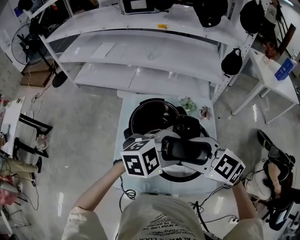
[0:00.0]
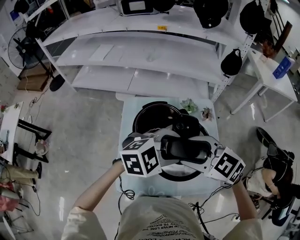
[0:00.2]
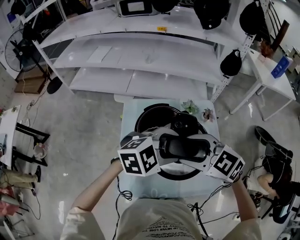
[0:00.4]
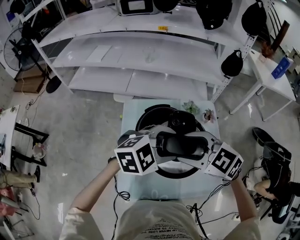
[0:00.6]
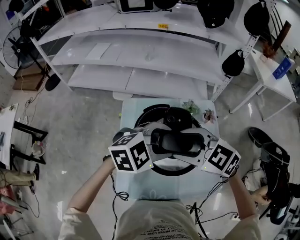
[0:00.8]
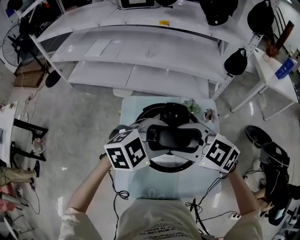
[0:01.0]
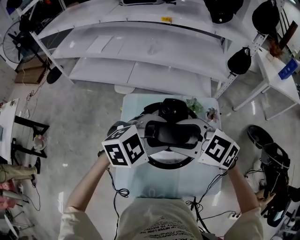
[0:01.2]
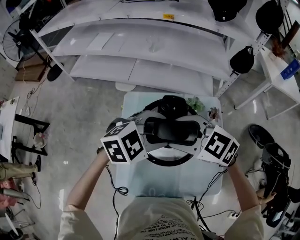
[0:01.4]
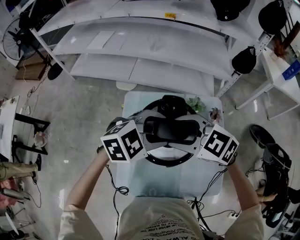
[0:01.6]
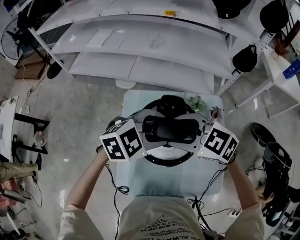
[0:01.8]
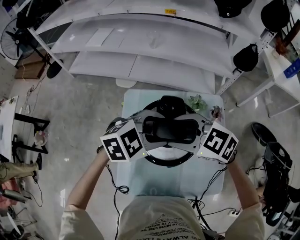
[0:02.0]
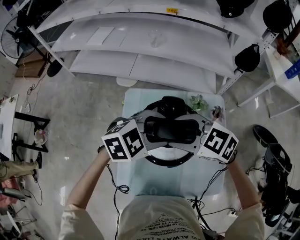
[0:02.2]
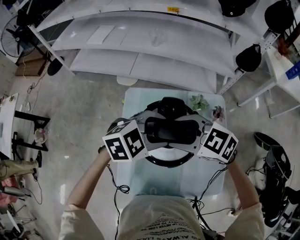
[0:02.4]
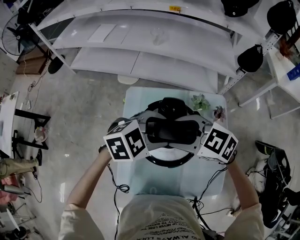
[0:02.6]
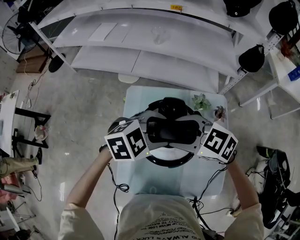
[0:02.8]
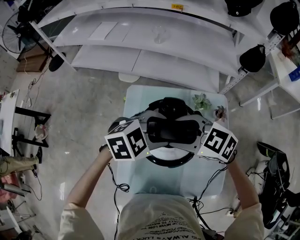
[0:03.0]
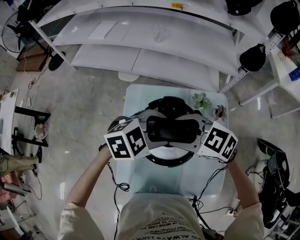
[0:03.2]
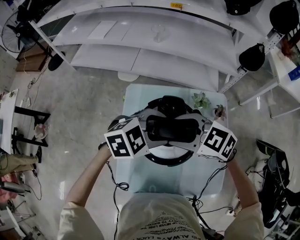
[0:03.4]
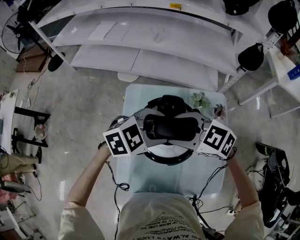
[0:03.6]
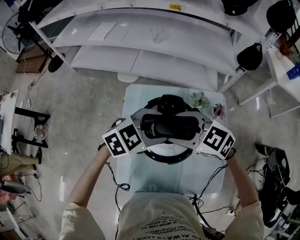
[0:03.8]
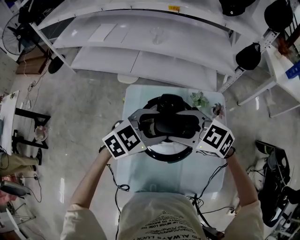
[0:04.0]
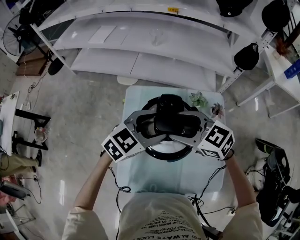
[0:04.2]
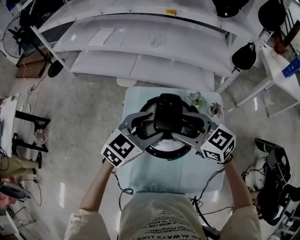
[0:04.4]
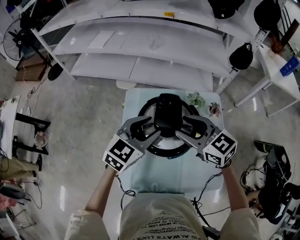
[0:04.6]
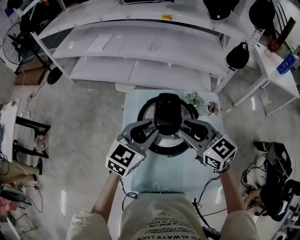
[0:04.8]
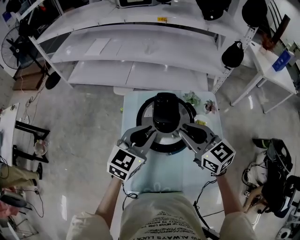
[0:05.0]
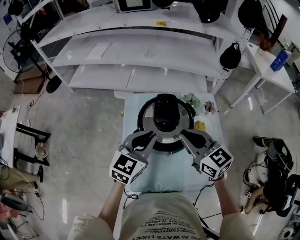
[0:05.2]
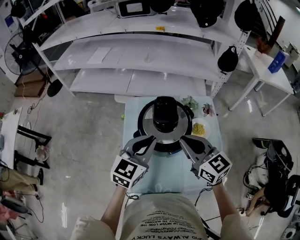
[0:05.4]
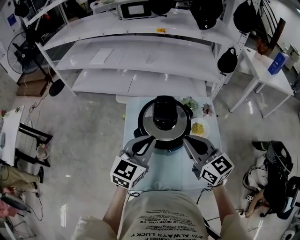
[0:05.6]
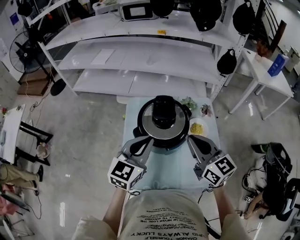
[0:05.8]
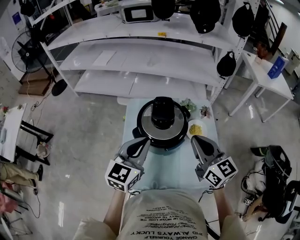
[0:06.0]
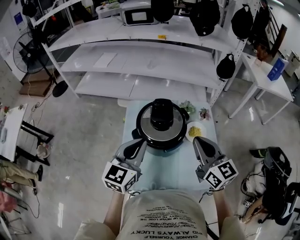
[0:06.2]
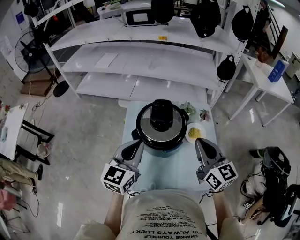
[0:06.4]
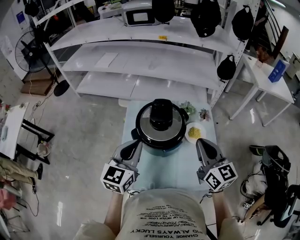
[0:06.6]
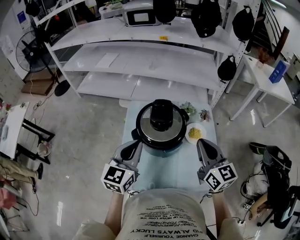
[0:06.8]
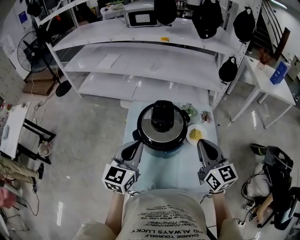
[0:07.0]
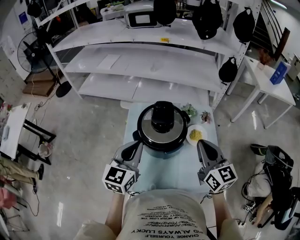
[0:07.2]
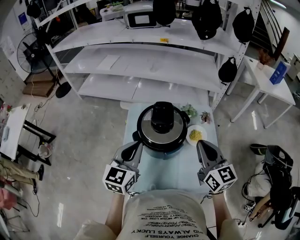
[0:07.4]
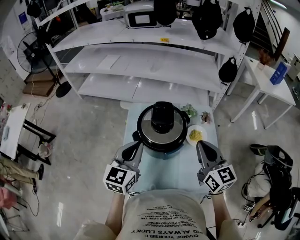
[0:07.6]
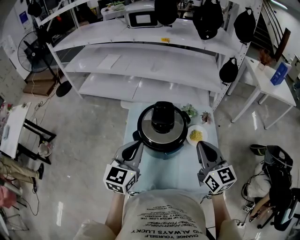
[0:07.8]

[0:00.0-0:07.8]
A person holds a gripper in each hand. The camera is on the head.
0:00.0 to 0:01.6: The left gripper ends up roughly 15 cm from where it was. The right gripper changes place by approximately 15 cm.
0:01.6 to 0:03.2: The grippers move only a little.
0:03.2 to 0:04.6: The left gripper turns by some 40 degrees, while the right gripper changes its angle by about 30 degrees.
0:04.6 to 0:06.2: The left gripper heads backward and upward, covering roughly 10 cm, rotates approximately 20 degrees, and closes its fingers. The right gripper shifts about 15 cm backward and to the right, turns by roughly 30 degrees, and closes its fingers.
0:06.2 to 0:07.8: The grippers move only a little.

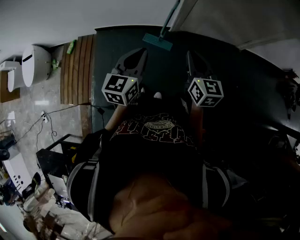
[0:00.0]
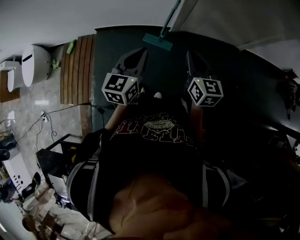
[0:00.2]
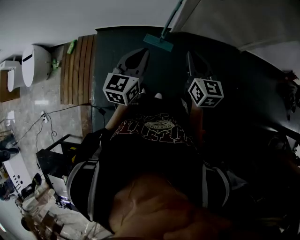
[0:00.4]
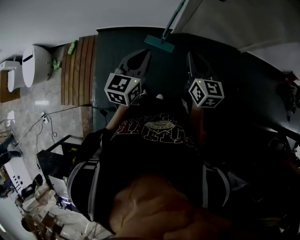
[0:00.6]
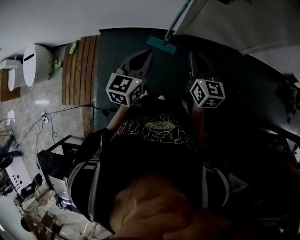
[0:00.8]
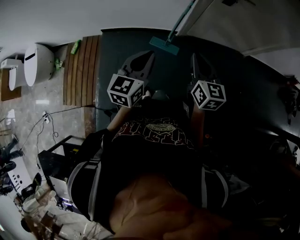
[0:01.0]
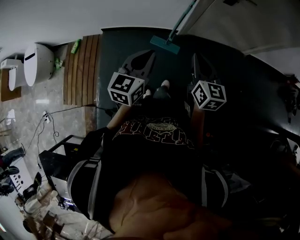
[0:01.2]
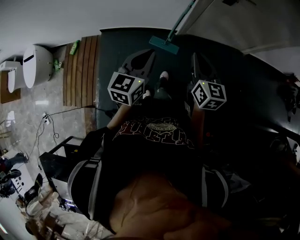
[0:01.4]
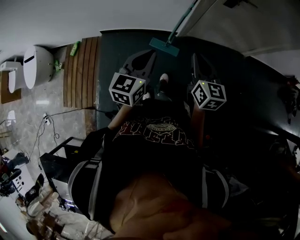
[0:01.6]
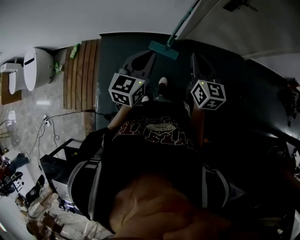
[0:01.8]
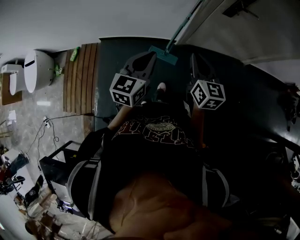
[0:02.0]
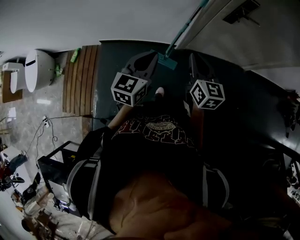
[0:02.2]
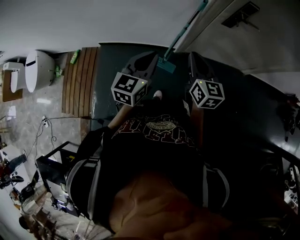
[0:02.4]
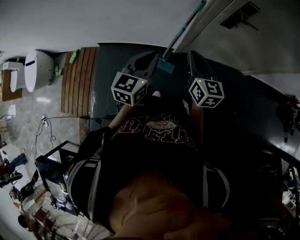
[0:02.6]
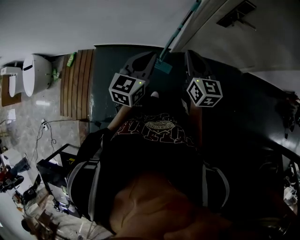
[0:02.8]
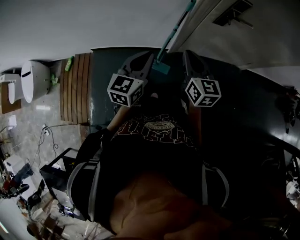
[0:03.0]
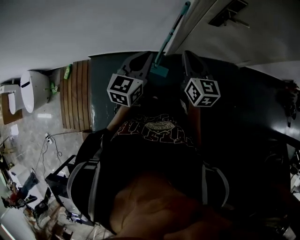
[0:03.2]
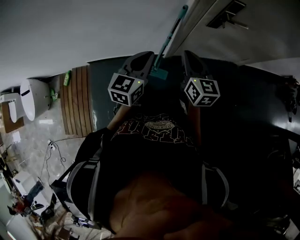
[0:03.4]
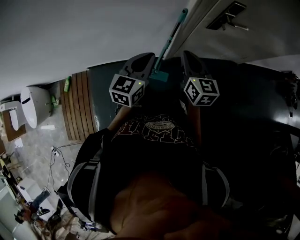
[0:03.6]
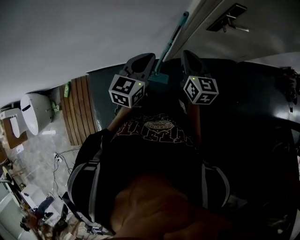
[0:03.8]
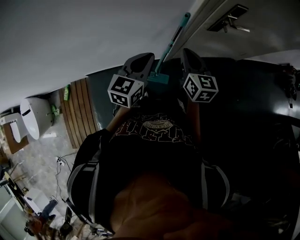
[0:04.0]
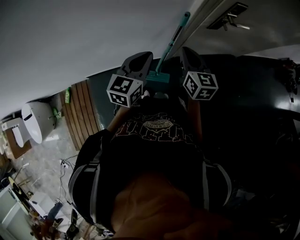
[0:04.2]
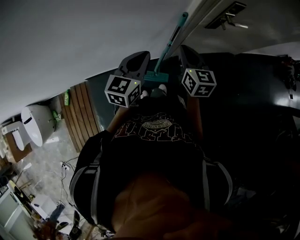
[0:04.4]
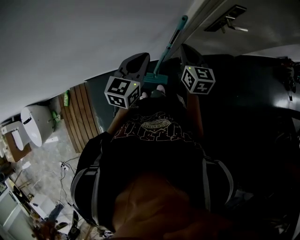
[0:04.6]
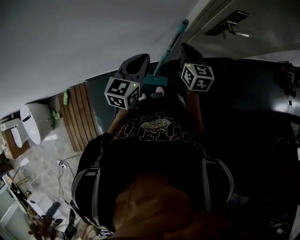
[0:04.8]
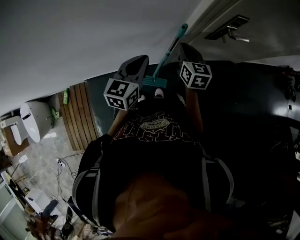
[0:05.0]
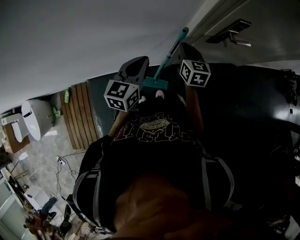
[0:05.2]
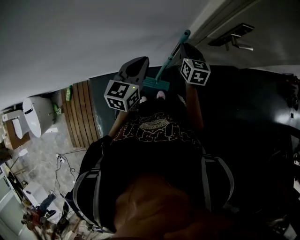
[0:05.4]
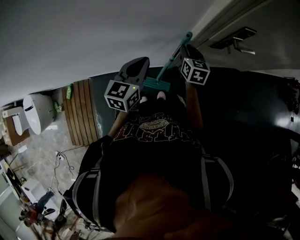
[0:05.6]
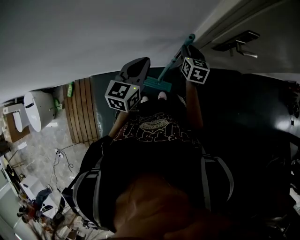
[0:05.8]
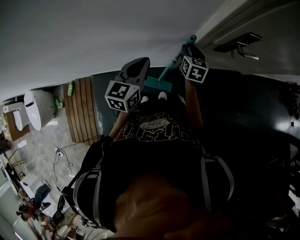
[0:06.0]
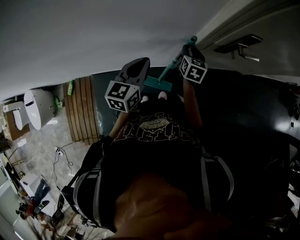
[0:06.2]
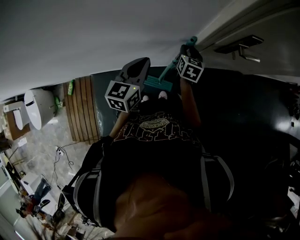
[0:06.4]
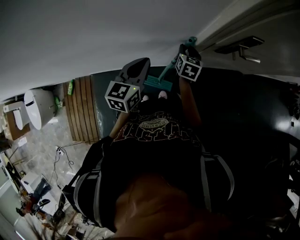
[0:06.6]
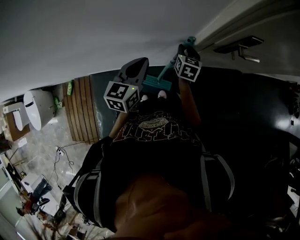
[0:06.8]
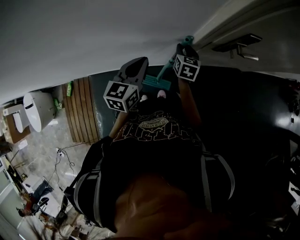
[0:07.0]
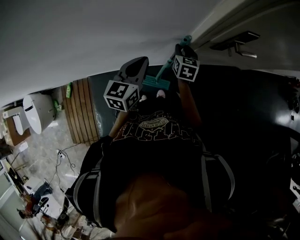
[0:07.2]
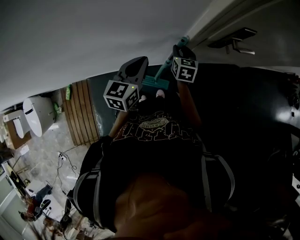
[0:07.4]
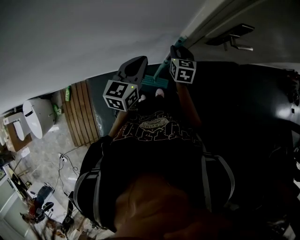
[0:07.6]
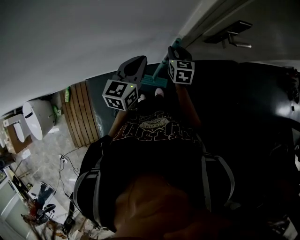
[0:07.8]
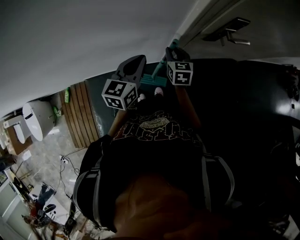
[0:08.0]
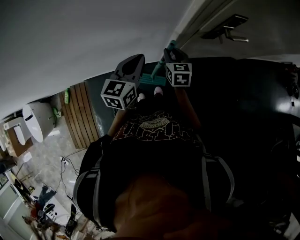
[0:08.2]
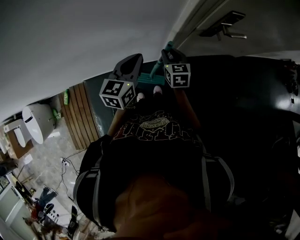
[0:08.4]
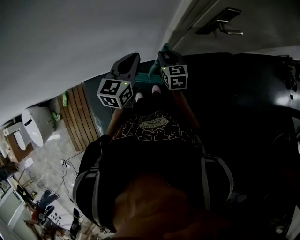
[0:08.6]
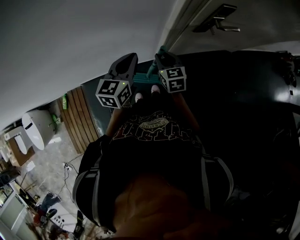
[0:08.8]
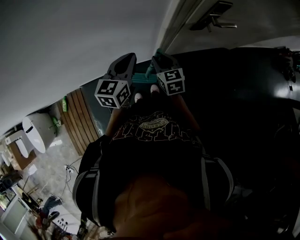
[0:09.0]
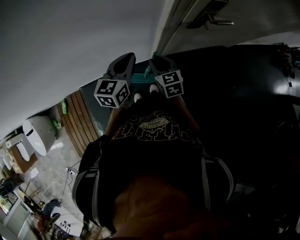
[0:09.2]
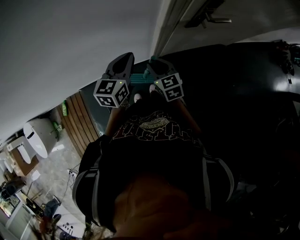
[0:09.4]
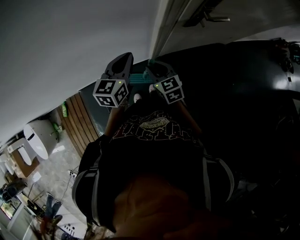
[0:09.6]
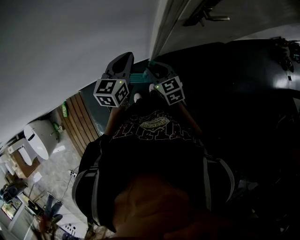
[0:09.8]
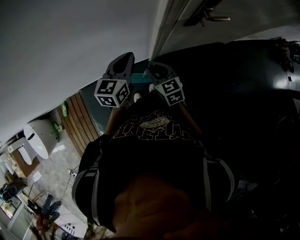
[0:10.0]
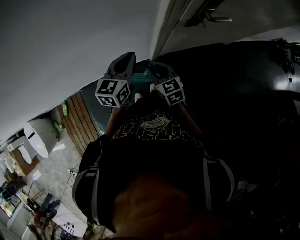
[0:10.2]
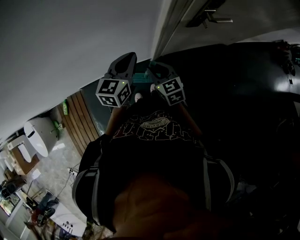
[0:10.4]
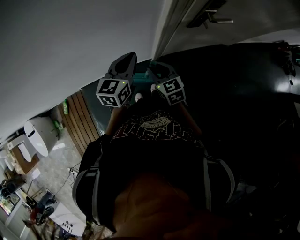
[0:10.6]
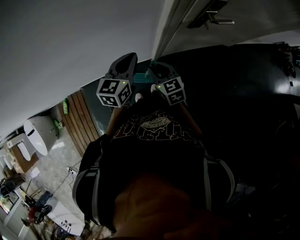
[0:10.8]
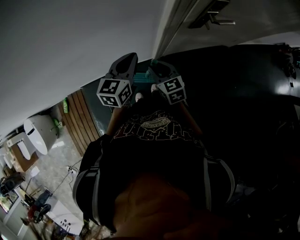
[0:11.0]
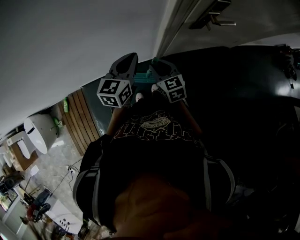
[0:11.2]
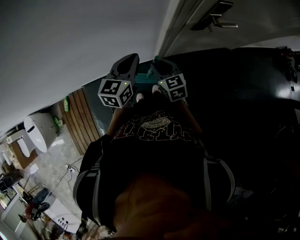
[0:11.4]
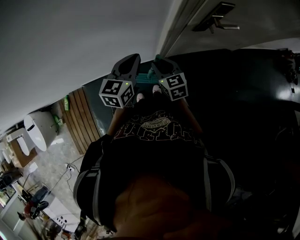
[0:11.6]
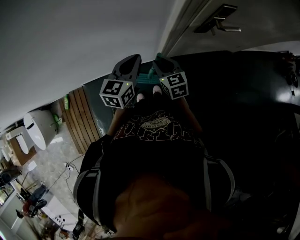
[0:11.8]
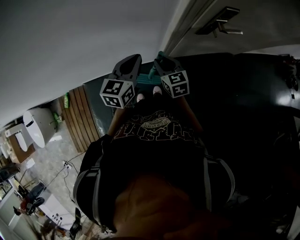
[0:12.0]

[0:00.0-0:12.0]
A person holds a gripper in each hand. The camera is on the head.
0:00.0 to 0:01.6: Both grippers travel together forward and to the left, about 10 cm.
0:01.6 to 0:03.0: Both grippers travel together forward, approximately 25 cm.
0:03.0 to 0:04.4: The left gripper travels forward and to the left by about 15 cm. Meanwhile the right gripper shifts approximately 15 cm forward.
0:04.4 to 0:06.0: The right gripper heads forward and downward, covering some 20 cm, and opens up, while the left gripper is displaced forward by some 10 cm.
0:06.0 to 0:07.6: The grippers make only small movements.
0:07.6 to 0:09.0: The right gripper is displaced backward by about 10 cm.
0:09.0 to 0:10.4: The right gripper moves backward, roughly 5 cm.
0:10.4 to 0:12.0: The right gripper heads forward, covering some 5 cm.

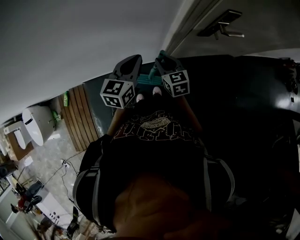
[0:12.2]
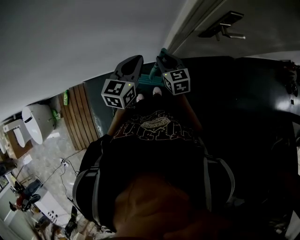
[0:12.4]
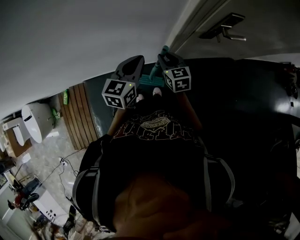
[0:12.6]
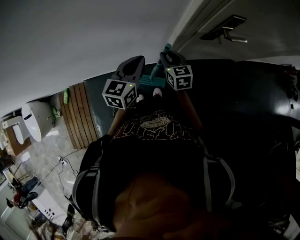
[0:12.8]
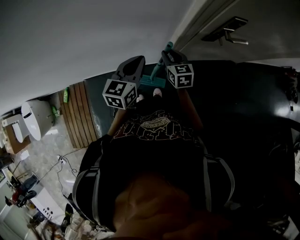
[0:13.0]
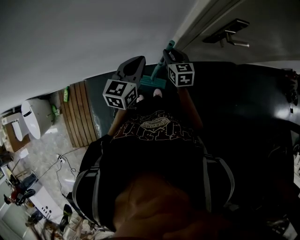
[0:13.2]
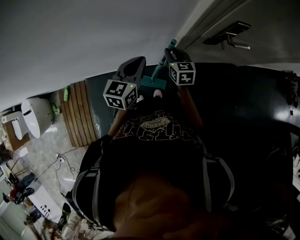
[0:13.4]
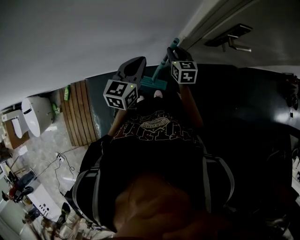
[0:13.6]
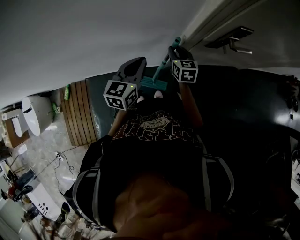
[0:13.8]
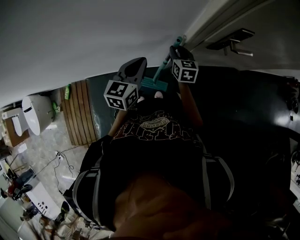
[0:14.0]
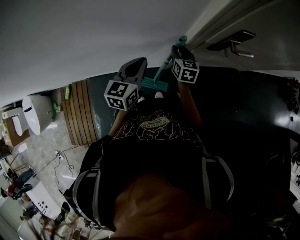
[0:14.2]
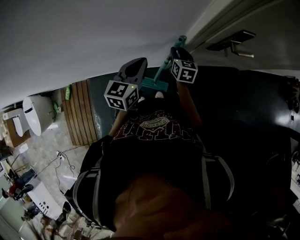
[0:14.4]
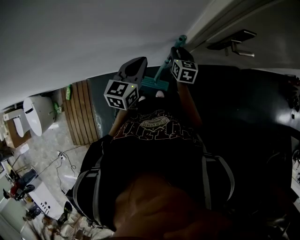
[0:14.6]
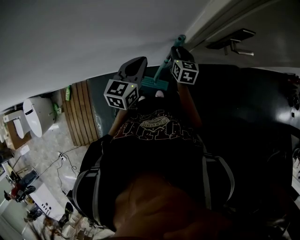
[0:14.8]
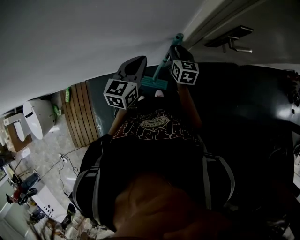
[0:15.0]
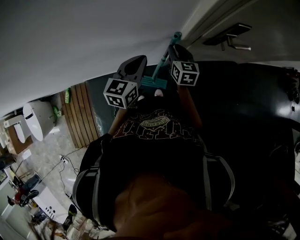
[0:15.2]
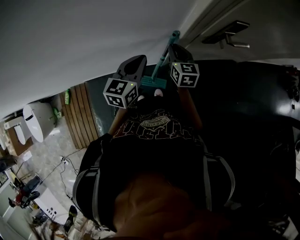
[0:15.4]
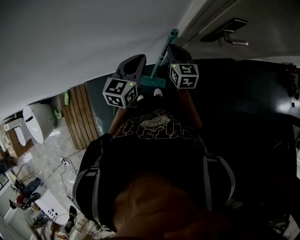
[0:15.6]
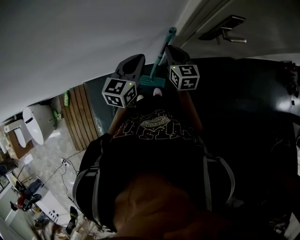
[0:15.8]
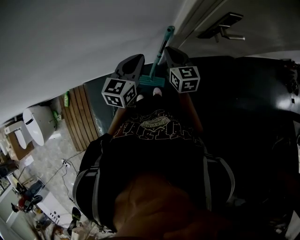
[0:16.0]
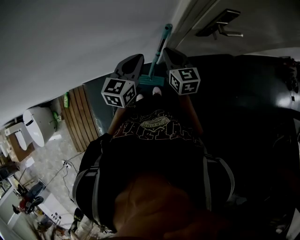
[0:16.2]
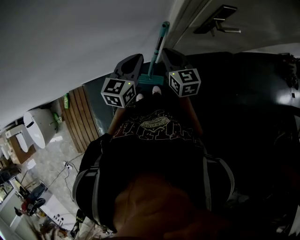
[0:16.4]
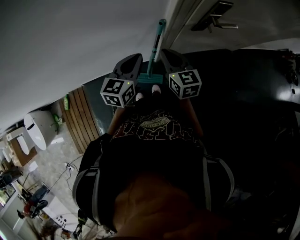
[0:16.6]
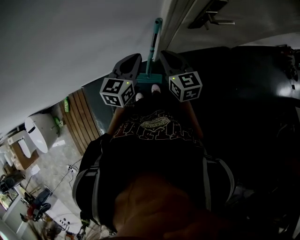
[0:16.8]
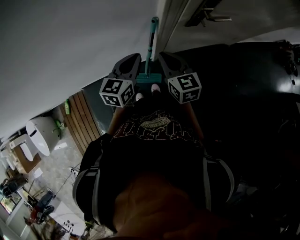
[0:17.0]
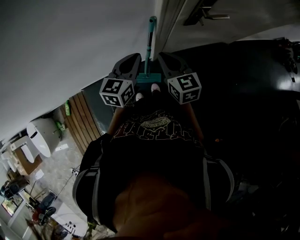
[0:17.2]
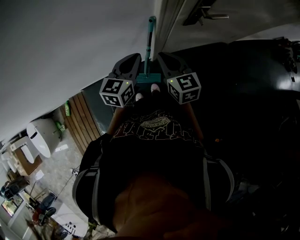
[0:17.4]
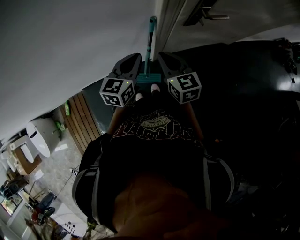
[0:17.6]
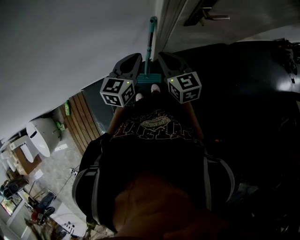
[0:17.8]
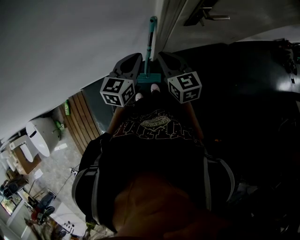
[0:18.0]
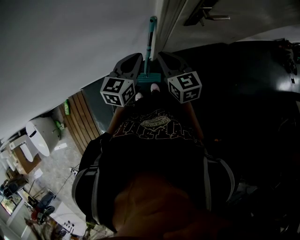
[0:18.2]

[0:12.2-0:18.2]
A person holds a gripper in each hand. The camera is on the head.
0:12.2 to 0:13.8: The right gripper travels forward by about 10 cm.
0:13.8 to 0:15.2: The grippers move only a little.
0:15.2 to 0:16.6: The right gripper heads backward and upward, covering some 15 cm, while the left gripper ends up about 5 cm from where it was.
0:16.6 to 0:18.2: The grippers stay close to where they were, moving slightly.
